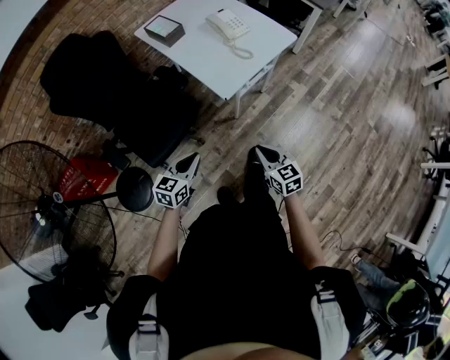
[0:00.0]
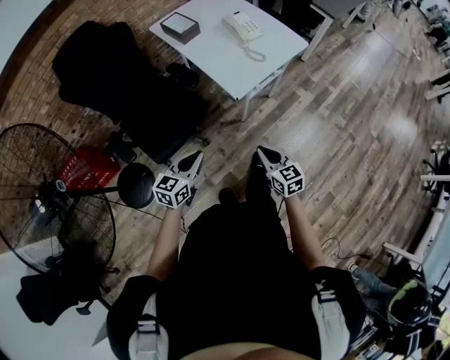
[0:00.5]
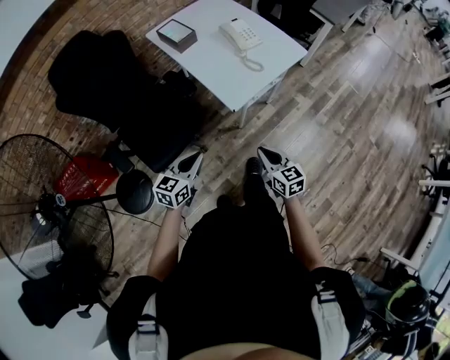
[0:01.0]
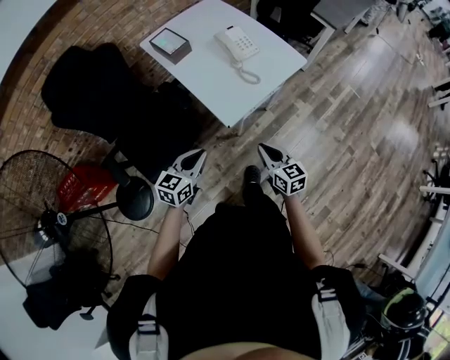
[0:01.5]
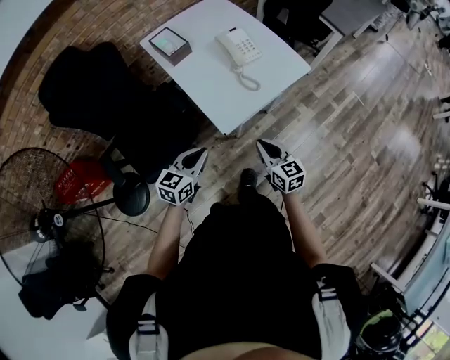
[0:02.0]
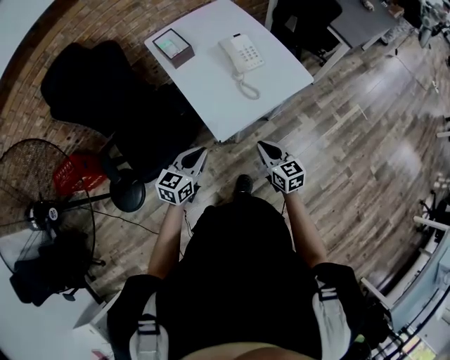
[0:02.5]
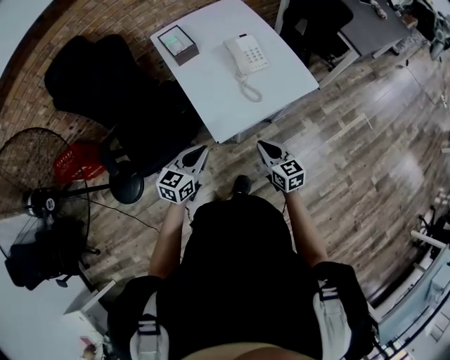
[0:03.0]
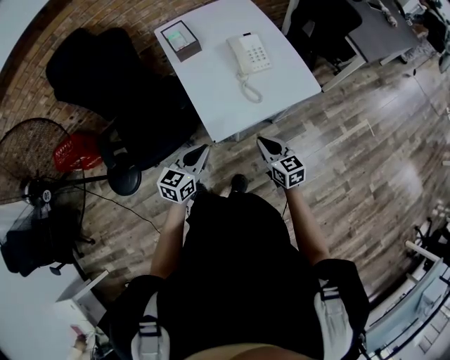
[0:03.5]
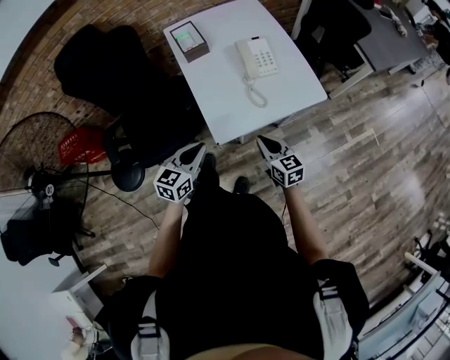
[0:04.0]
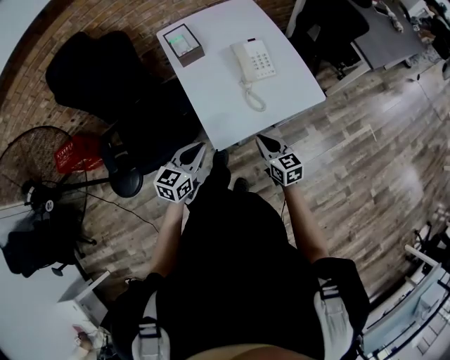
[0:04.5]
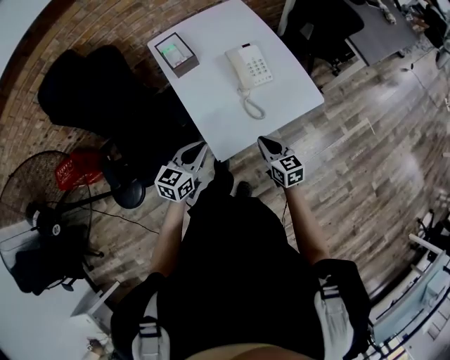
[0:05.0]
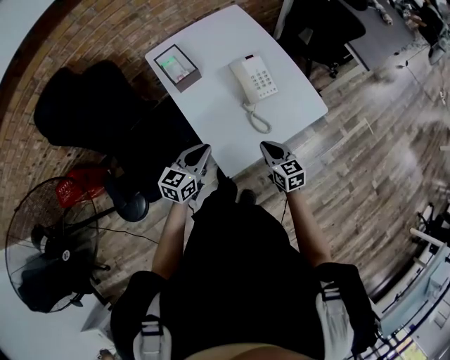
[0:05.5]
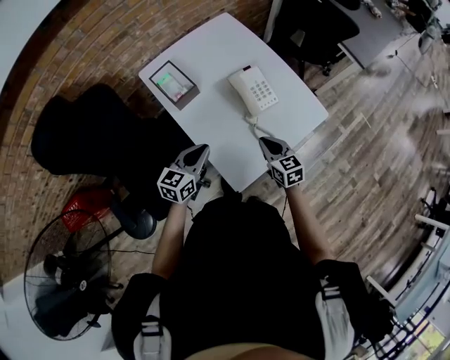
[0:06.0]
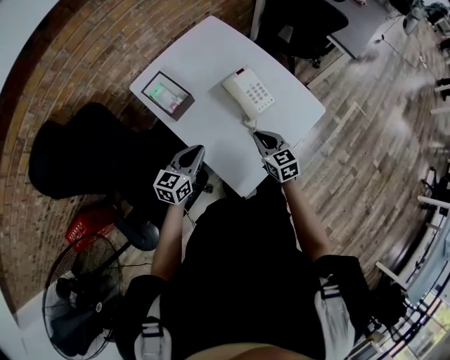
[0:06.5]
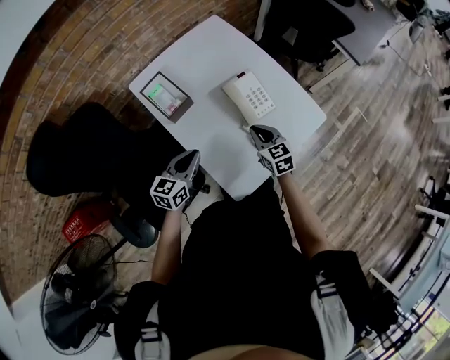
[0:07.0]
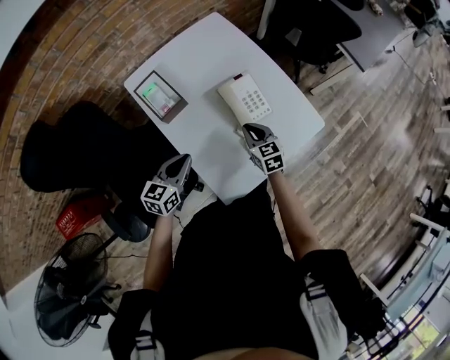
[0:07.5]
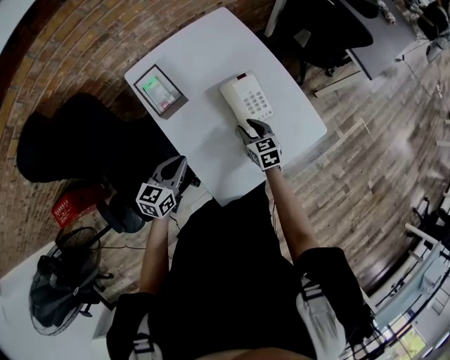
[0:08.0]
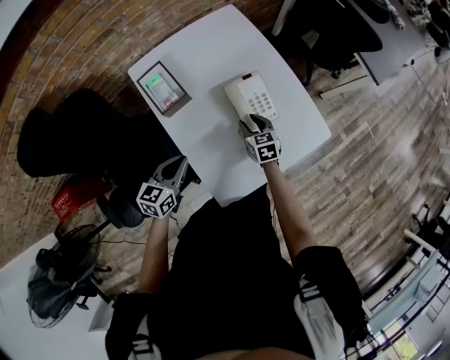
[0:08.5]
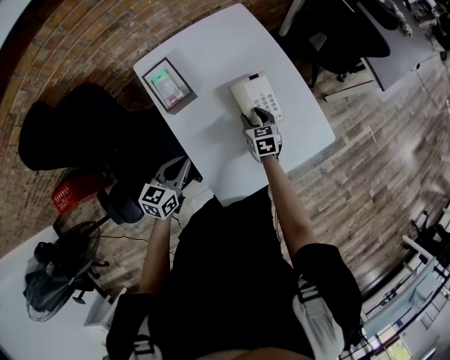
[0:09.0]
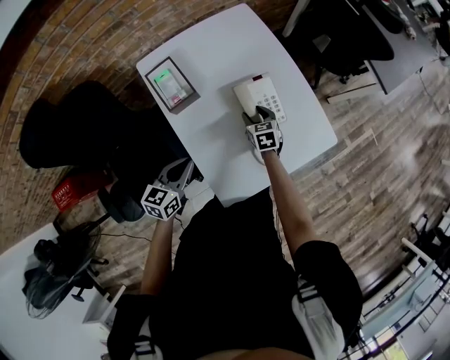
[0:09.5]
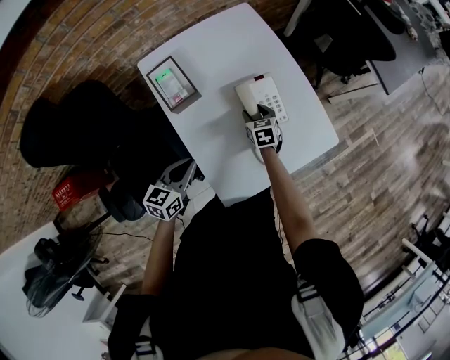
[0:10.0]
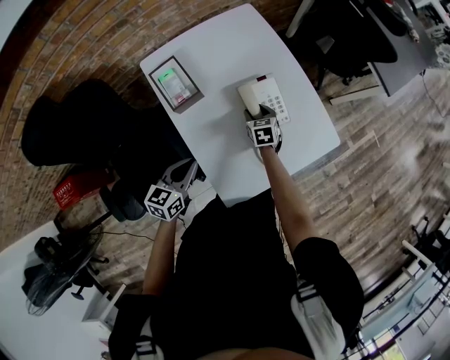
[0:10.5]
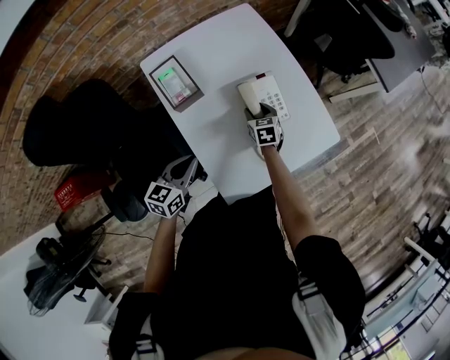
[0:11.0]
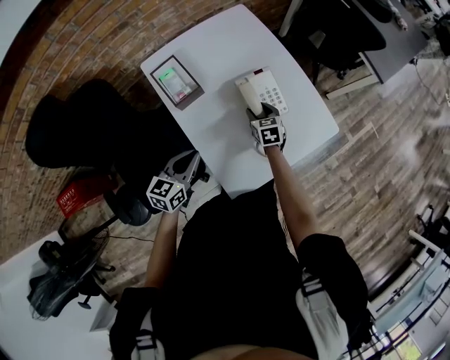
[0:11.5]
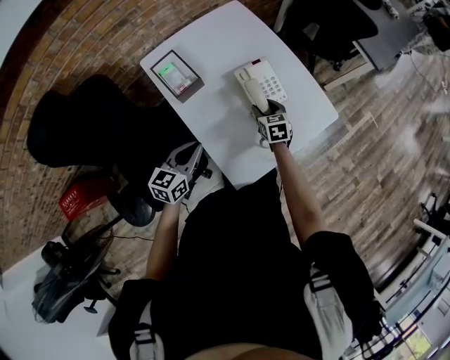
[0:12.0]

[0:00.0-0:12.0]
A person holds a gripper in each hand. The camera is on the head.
0:00.0 to 0:02.0: Both grippers travel together forward, about 20 cm.
0:02.0 to 0:04.0: The right gripper travels forward and to the right by roughly 10 cm. Meanwhile the left gripper travels to the right and forward by approximately 10 cm.
0:04.0 to 0:06.0: The grippers both shift forward by about 20 cm.
0:06.0 to 0:08.0: The right gripper goes about 15 cm forward and downward, and opens. Meanwhile the left gripper shifts approximately 5 cm forward.
0:08.0 to 0:10.0: The right gripper heads forward and downward, covering about 10 cm.
0:10.0 to 0:12.0: The right gripper goes some 5 cm backward.

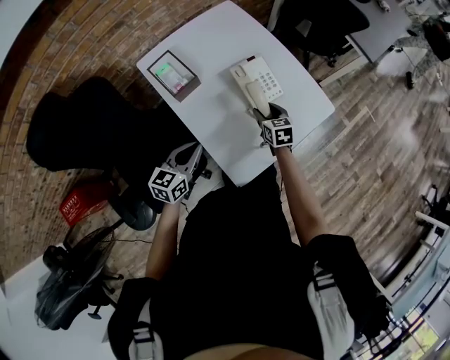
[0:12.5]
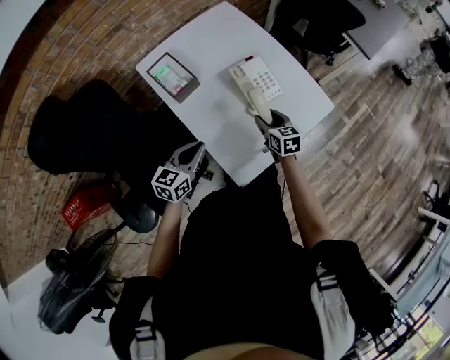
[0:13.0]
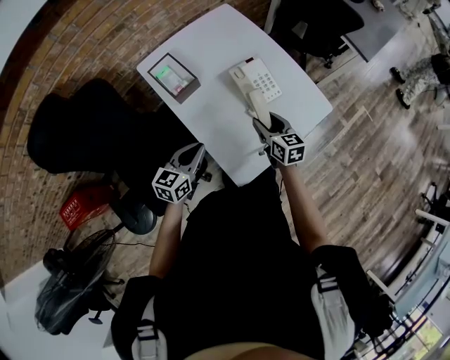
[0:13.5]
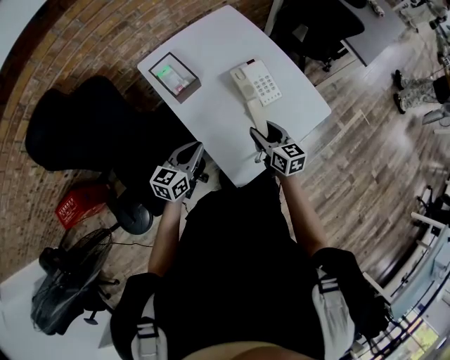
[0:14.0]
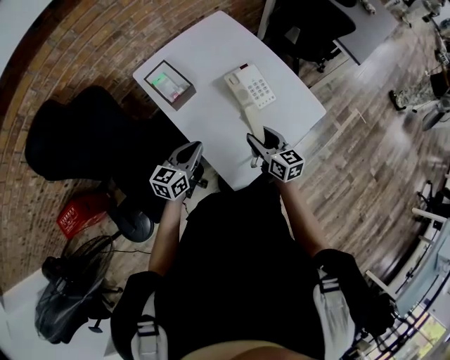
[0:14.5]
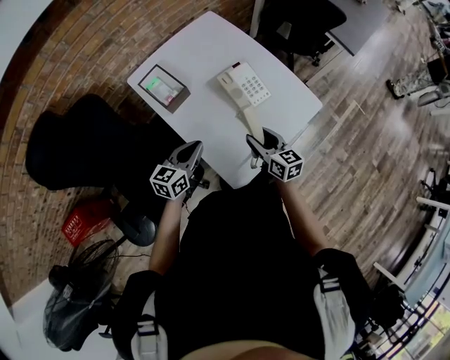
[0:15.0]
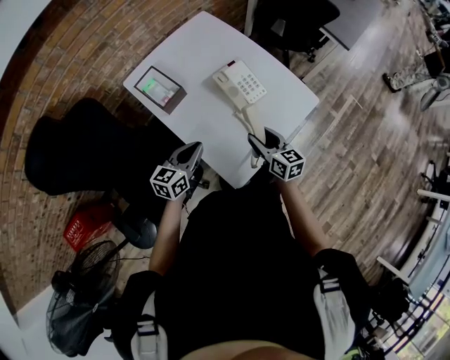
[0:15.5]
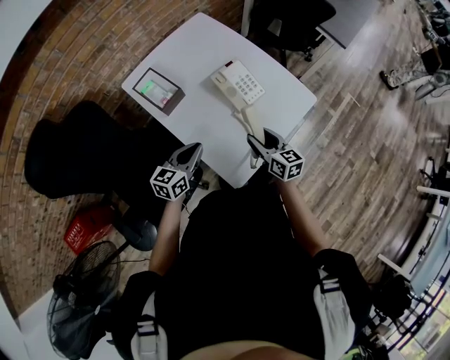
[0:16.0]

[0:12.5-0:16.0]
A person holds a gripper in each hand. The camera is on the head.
0:12.5 to 0:14.5: The right gripper is displaced backward and upward by some 15 cm, and rotates some 20 degrees.
0:14.5 to 0:16.0: The grippers stay close to where they were, moving slightly.

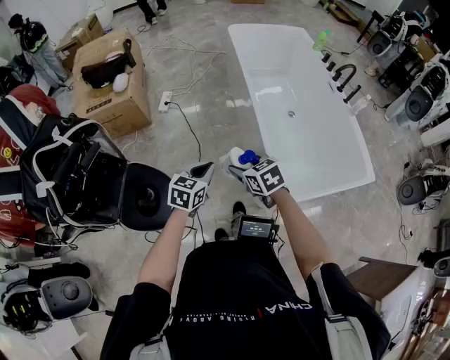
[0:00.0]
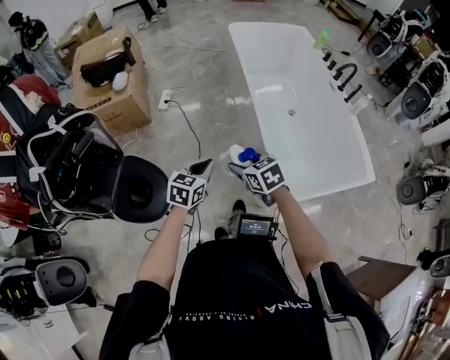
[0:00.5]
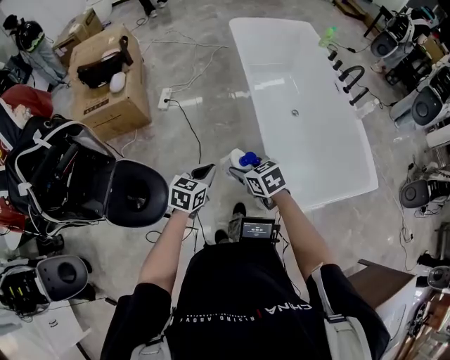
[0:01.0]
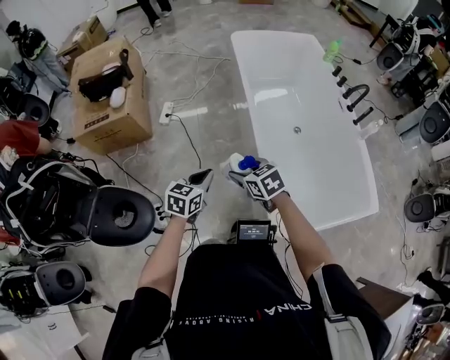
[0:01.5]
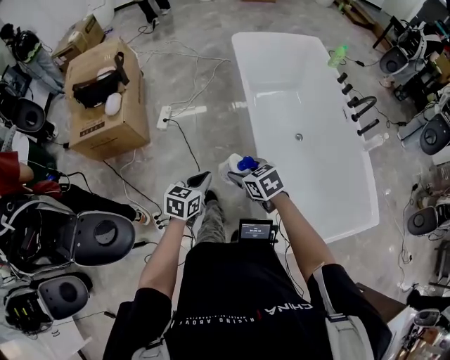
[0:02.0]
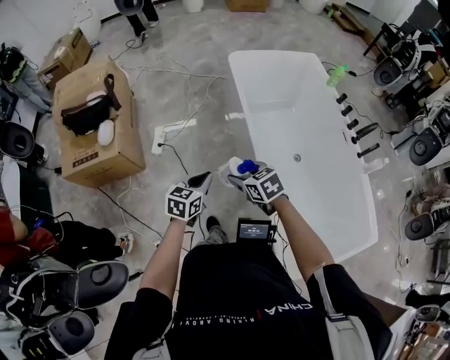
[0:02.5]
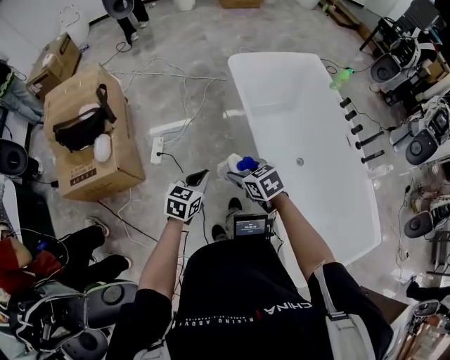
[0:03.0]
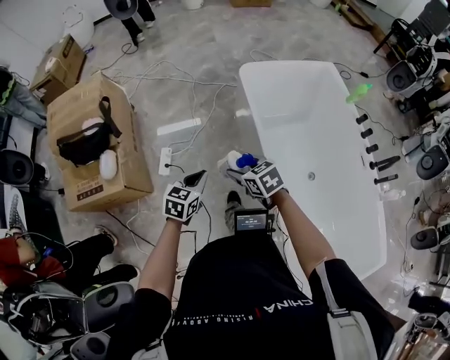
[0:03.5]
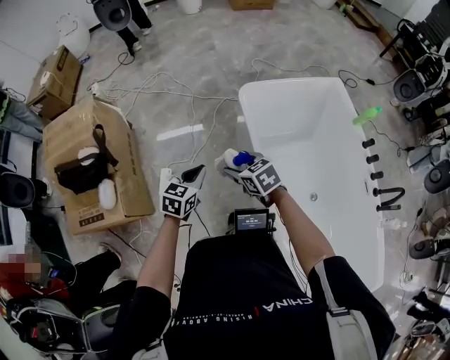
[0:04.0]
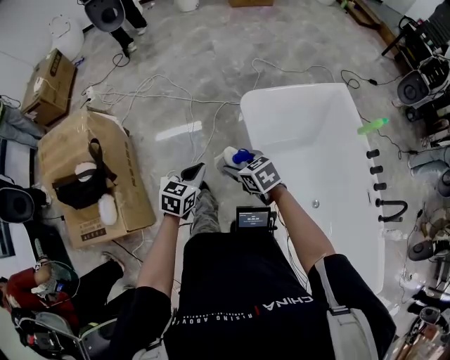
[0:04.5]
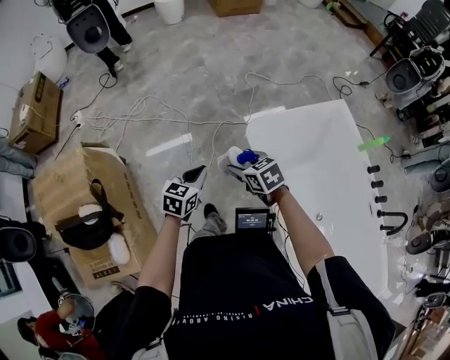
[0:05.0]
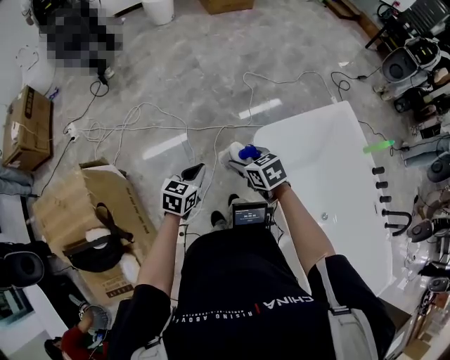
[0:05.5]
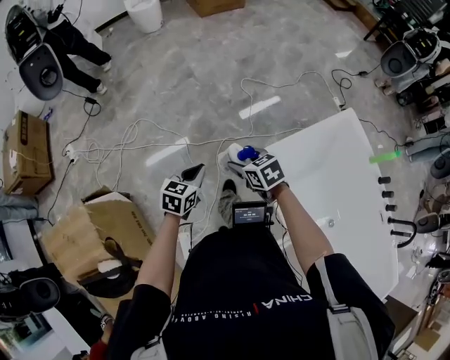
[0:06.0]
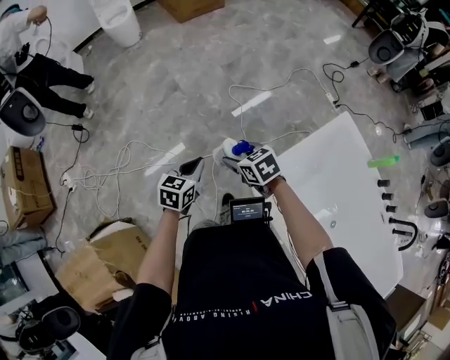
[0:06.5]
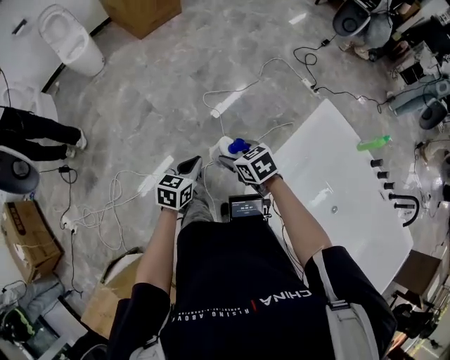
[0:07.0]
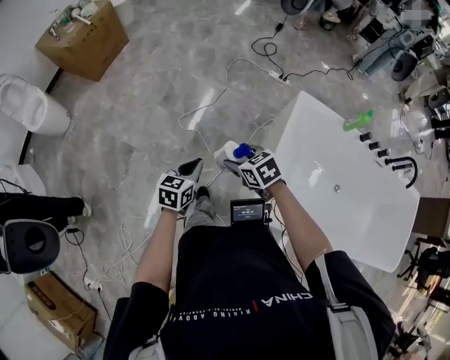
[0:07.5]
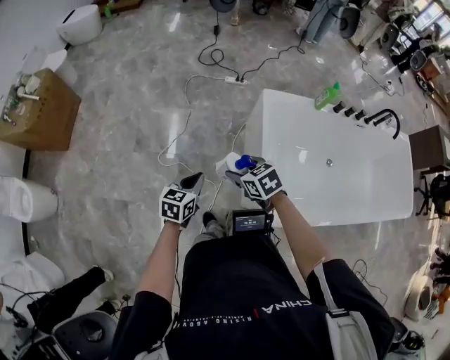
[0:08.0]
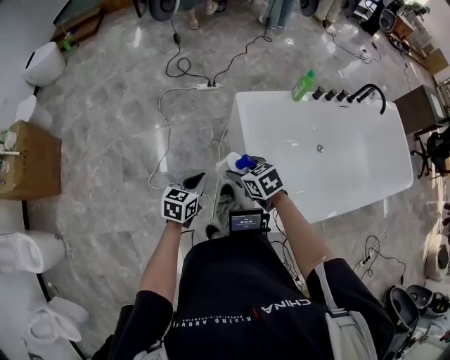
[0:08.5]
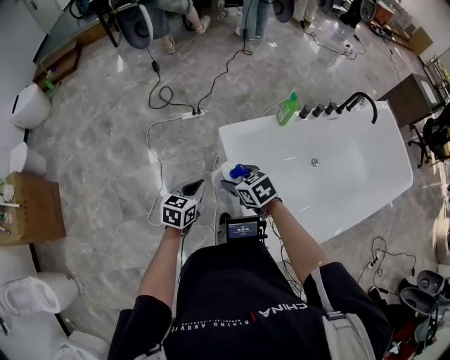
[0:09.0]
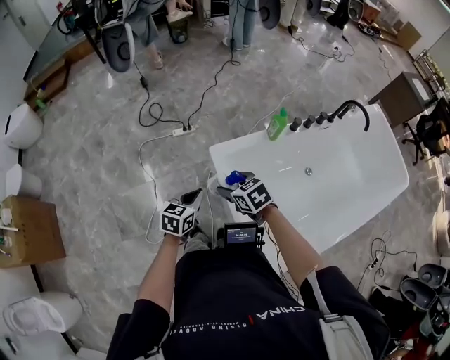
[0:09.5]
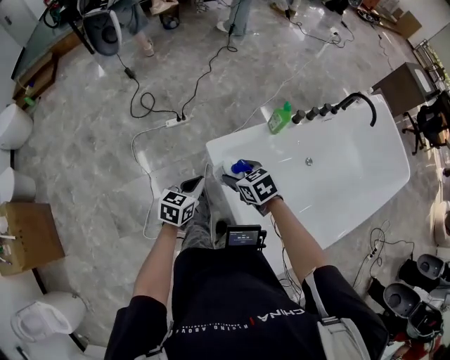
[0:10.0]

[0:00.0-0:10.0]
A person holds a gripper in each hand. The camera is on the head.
0:00.0 to 0:02.0: The grippers both shift forward by about 25 cm.
0:02.0 to 0:04.0: Both grippers are carried forward, roughly 60 cm.
0:04.0 to 0:06.0: Both grippers are carried forward, some 50 cm.
0:06.0 to 0:08.0: The two grippers travel together, some 50 cm. The right gripper changes its angle by roughly 60 degrees. The left gripper rotates some 60 degrees.
0:08.0 to 0:10.0: Both grippers are carried roughly 40 cm. The left gripper rotates about 30 degrees. The right gripper swivels some 30 degrees.

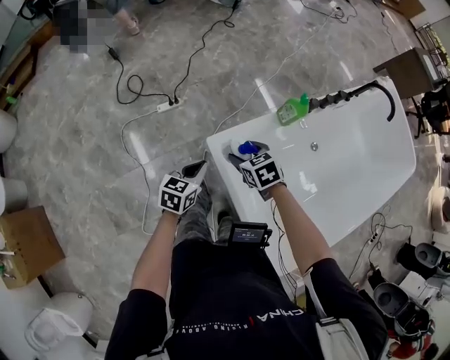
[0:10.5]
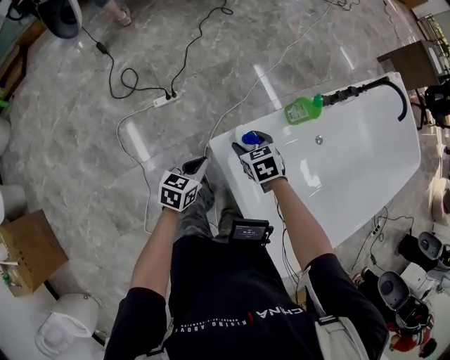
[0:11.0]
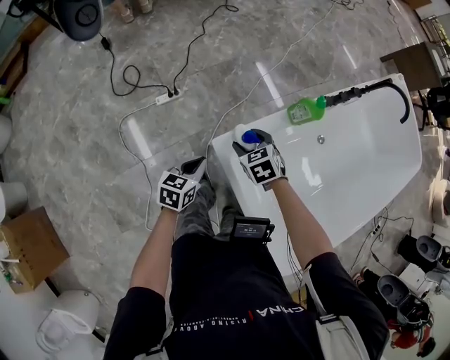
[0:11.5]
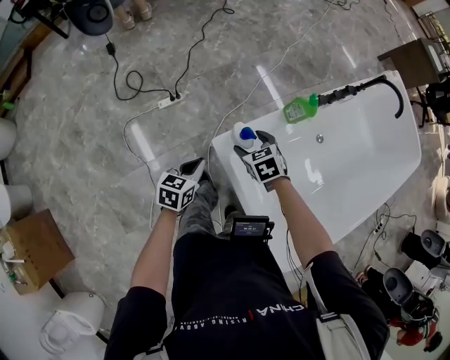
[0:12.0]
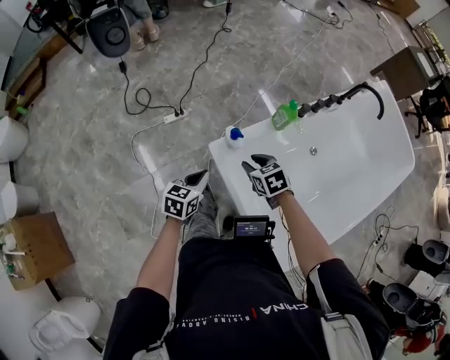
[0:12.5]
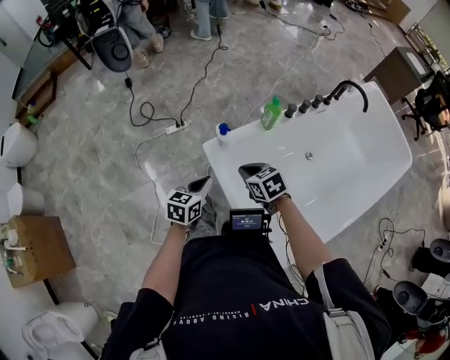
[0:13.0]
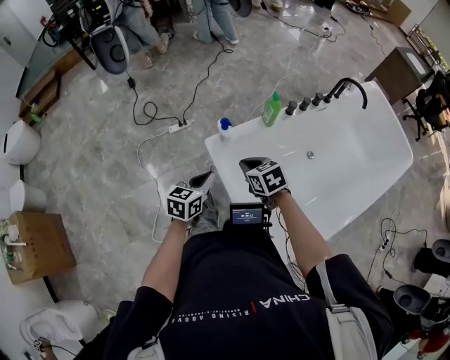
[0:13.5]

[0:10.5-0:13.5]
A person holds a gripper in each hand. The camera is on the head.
0:10.5 to 0:12.0: The right gripper heads forward, covering approximately 5 cm.
0:12.0 to 0:13.5: The left gripper moves backward, upward and to the right, some 25 cm; the right gripper goes some 25 cm backward and upward, and closes its fingers.
